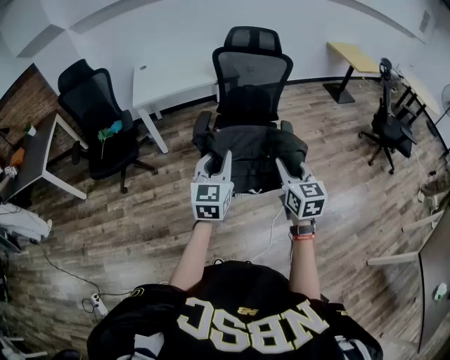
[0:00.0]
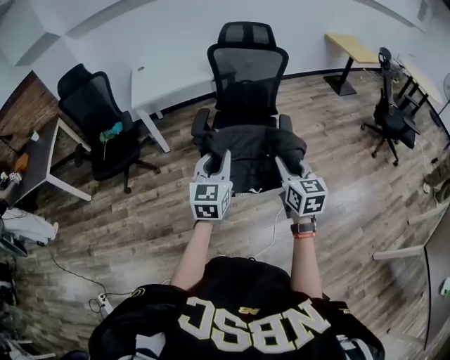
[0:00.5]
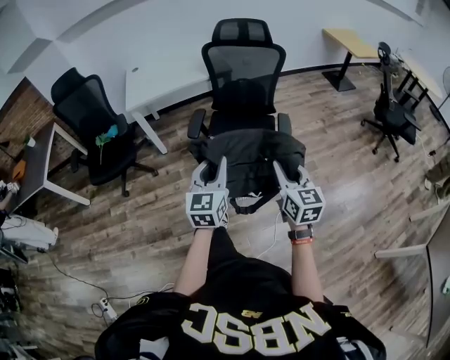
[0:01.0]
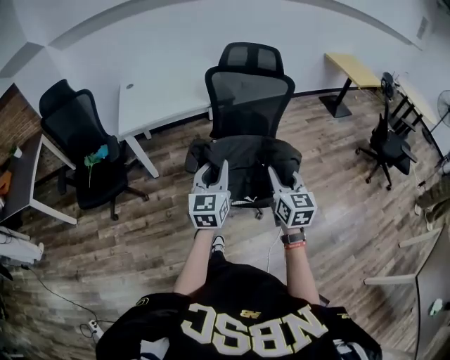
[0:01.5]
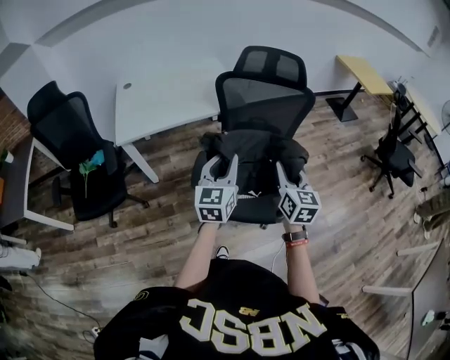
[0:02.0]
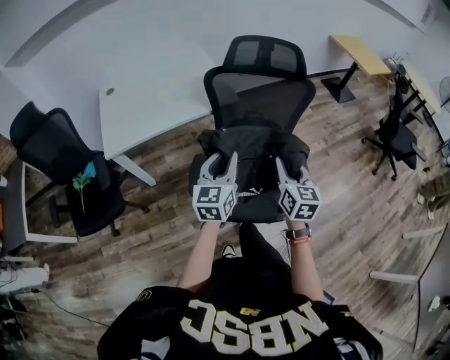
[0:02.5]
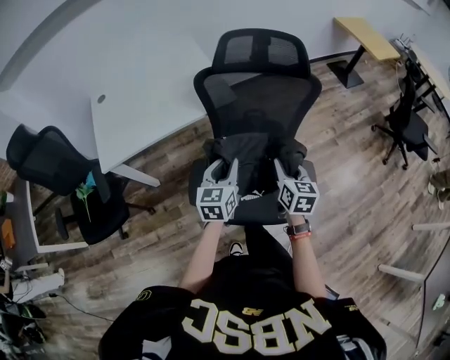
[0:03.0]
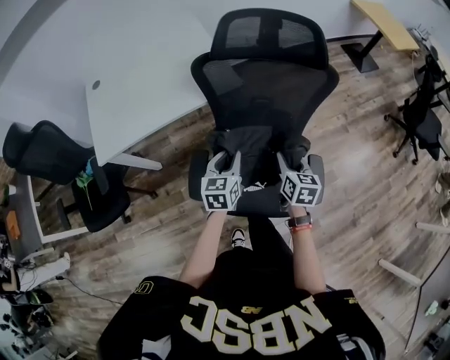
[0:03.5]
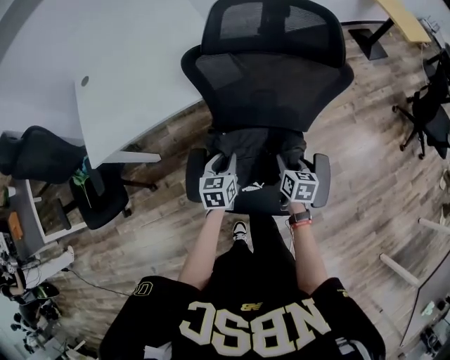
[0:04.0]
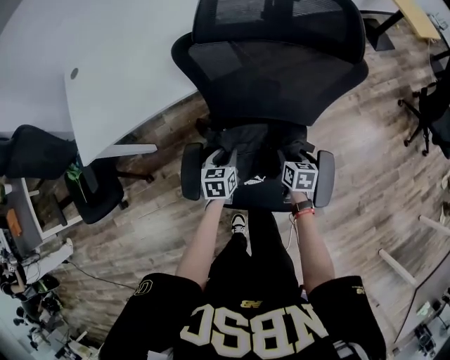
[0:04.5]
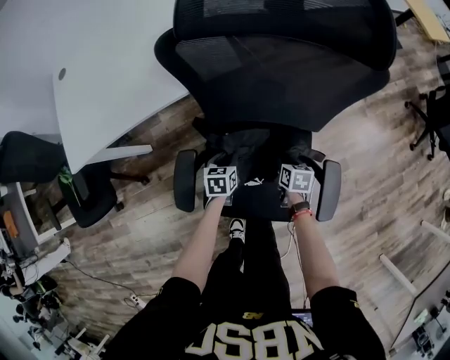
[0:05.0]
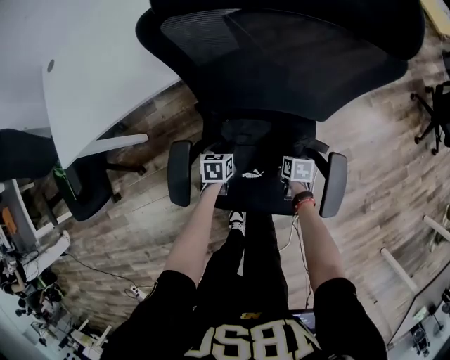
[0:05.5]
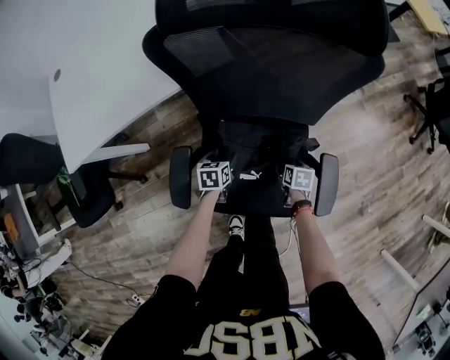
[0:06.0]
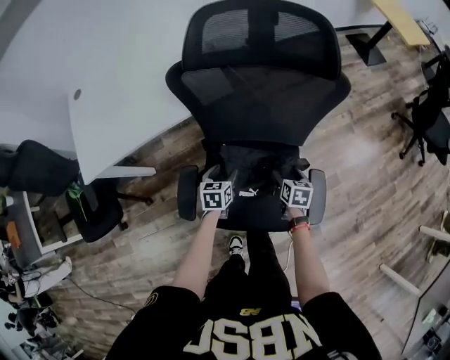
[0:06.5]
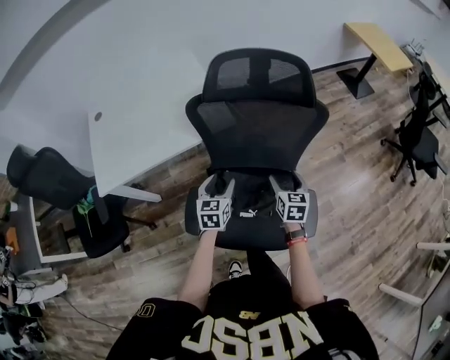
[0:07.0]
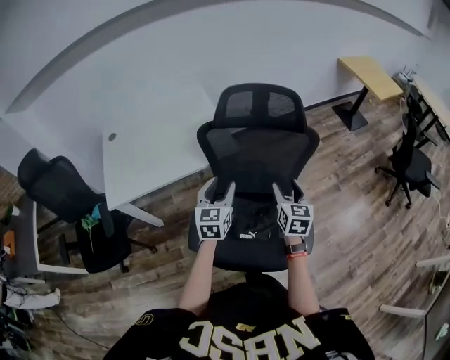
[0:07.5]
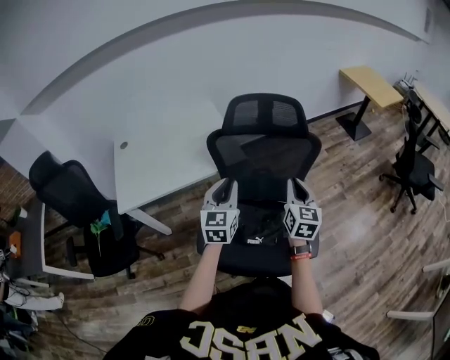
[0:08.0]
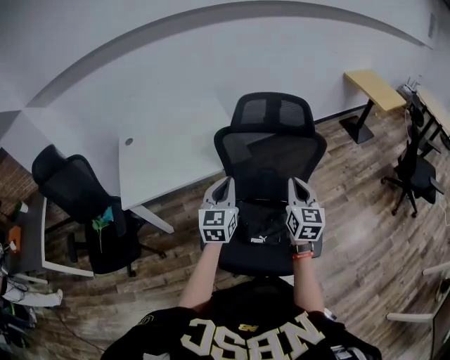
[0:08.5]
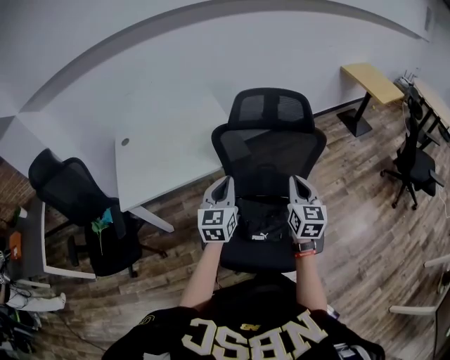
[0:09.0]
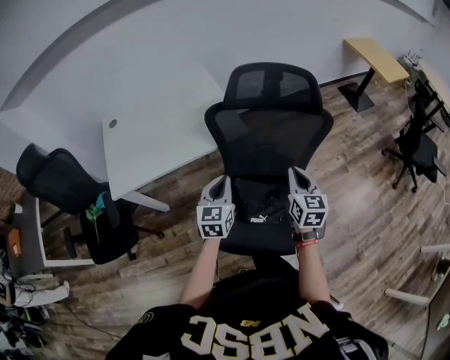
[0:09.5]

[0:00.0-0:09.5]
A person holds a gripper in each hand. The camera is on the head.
0:00.0 to 0:02.0: The grippers both shift forward by some 35 cm.
0:02.0 to 0:04.0: The two grippers go approximately 35 cm downward and forward. The right gripper tips its fingers downward by about 30 degrees; the left gripper angles its fingers downward, by roughly 30 degrees.
0:04.0 to 0:05.5: Both grippers move downward, some 25 cm. The left gripper rotates some 20 degrees, while the right gripper turns by some 20 degrees, and opens up.
0:05.5 to 0:07.5: The grippers both shift upward by about 50 cm. The left gripper angles its fingers upward, by roughly 40 degrees. The right gripper tips its fingers upward by about 40 degrees.
0:07.5 to 0:09.5: The right gripper goes upward and returns, some 10 cm each way, and closes. The left gripper goes upward and returns, roughly 10 cm each way, and closes.

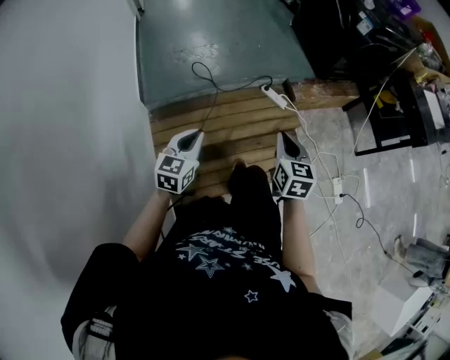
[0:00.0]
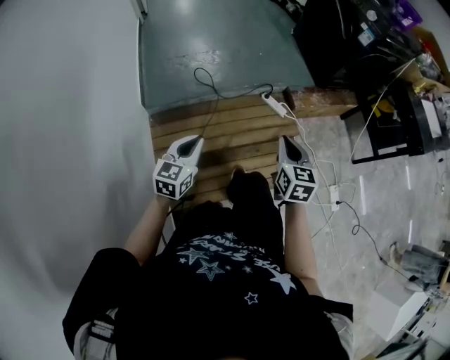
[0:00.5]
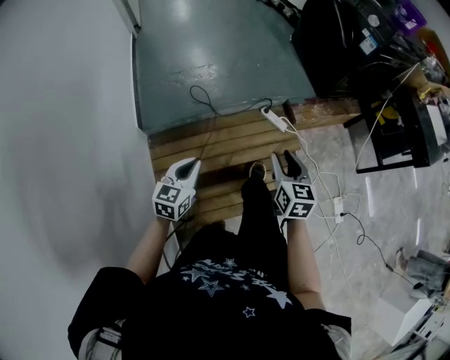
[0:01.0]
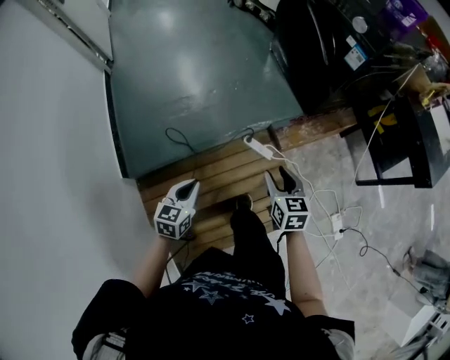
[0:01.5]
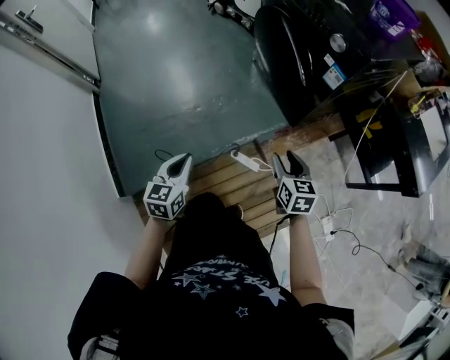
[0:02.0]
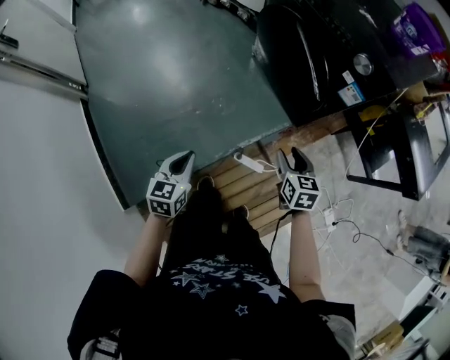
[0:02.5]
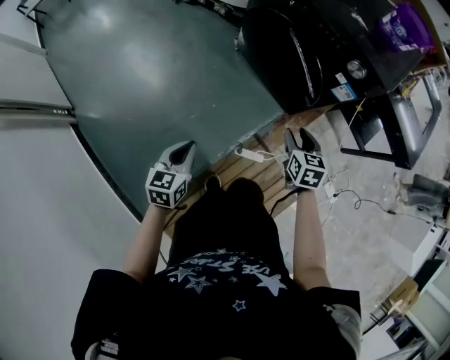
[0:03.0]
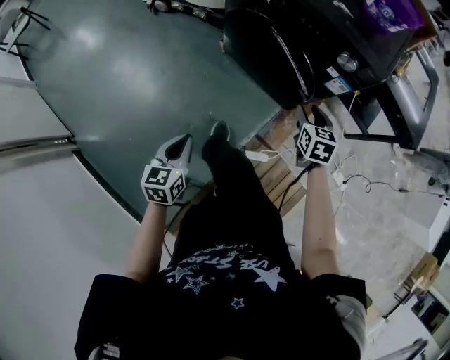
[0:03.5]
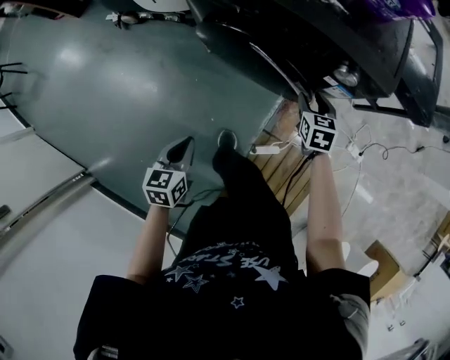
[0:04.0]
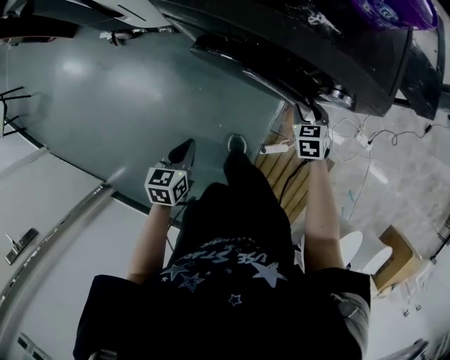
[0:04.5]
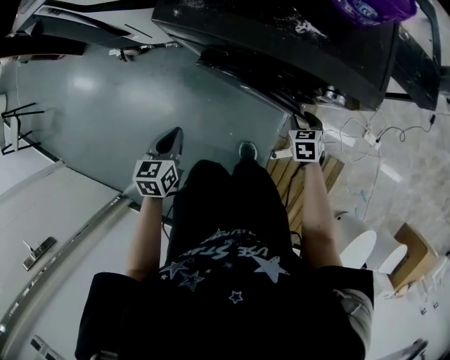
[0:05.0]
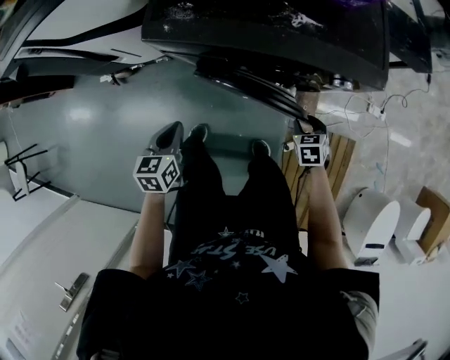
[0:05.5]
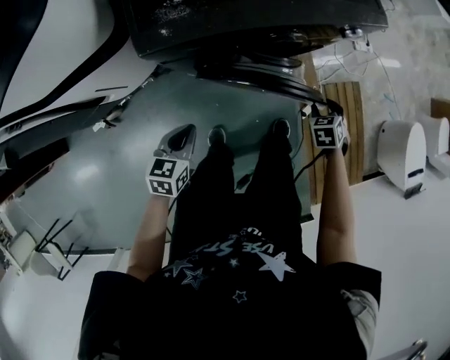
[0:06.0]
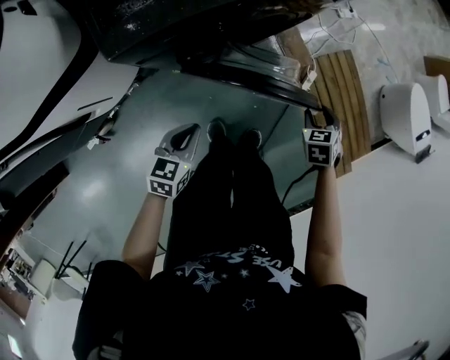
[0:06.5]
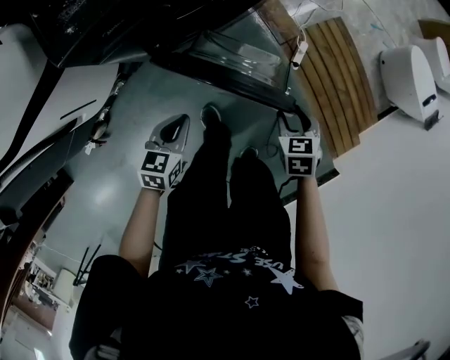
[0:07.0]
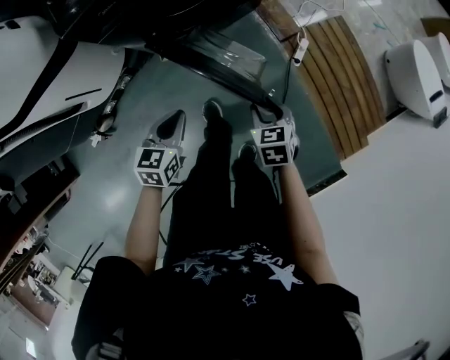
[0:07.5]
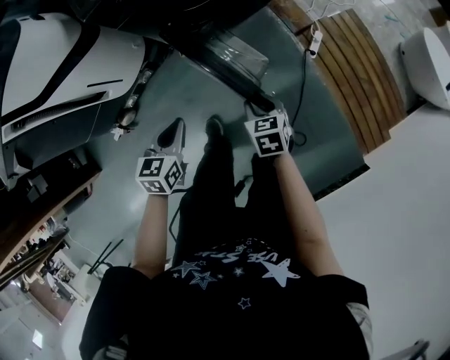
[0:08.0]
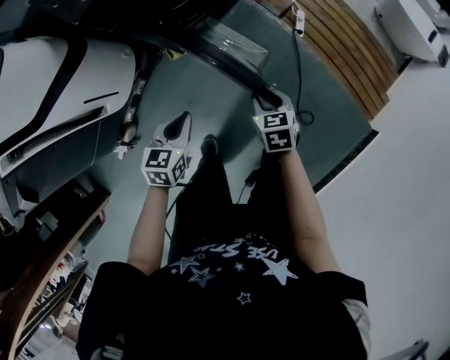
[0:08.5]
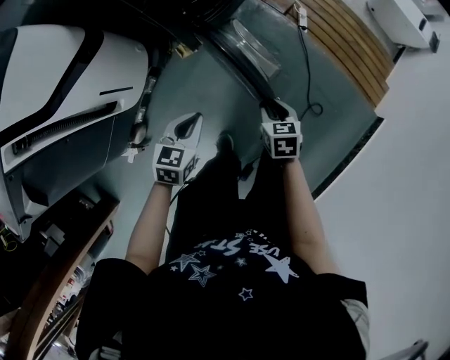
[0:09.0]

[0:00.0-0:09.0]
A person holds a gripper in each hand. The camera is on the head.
0:00.0 to 0:02.0: The two grippers travel together, forward, about 50 cm. The right gripper opens.
0:02.0 to 0:04.5: The left gripper ends up roughly 50 cm from where it was, and rotates some 40 degrees; the right gripper moves some 5 cm upward and comes back, and rotates approximately 40 degrees.
0:04.5 to 0:07.0: The left gripper shifts by approximately 20 cm, and turns by approximately 70 degrees, while the right gripper moves roughly 35 cm, and rotates around the line of its fingers by roughly 50 degrees, clockwise from behind.
0:07.0 to 0:09.0: The left gripper ends up approximately 25 cm from where it was, and swivels approximately 20 degrees. Meanwhile the right gripper shifts by about 30 cm, and turns by some 20 degrees.

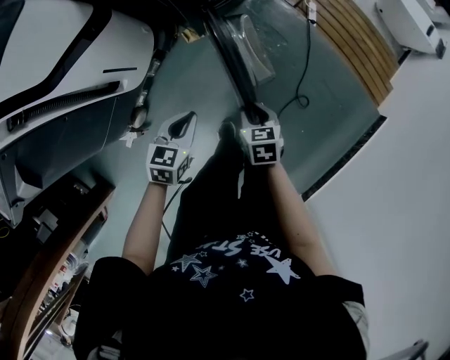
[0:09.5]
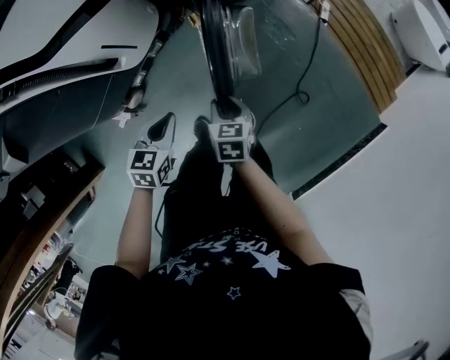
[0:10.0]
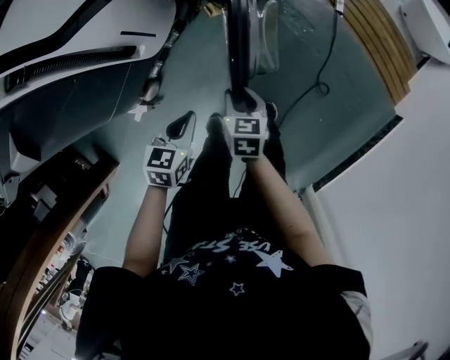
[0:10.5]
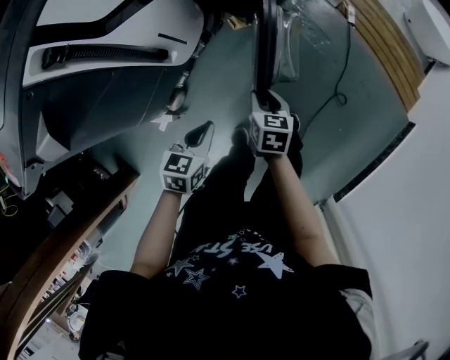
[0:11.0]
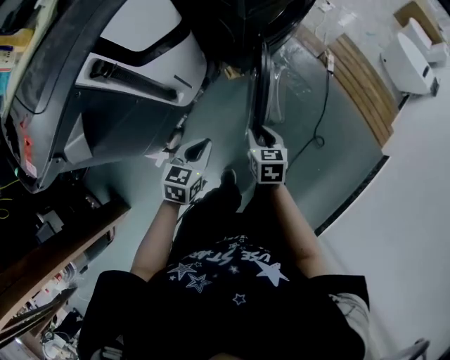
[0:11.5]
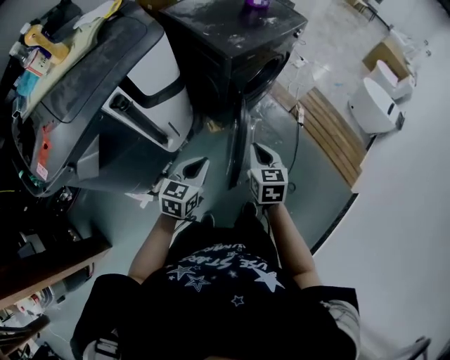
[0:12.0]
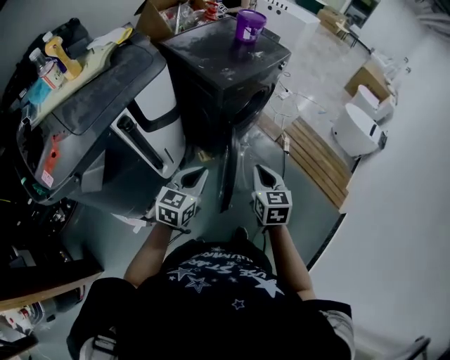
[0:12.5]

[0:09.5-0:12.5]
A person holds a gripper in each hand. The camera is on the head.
0:09.5 to 0:11.0: The left gripper shifts approximately 20 cm to the left and backward, while the right gripper heads to the left, covering roughly 15 cm.
0:11.0 to 0:12.5: The right gripper travels upward by approximately 30 cm, swivels some 30 degrees, and closes up, while the left gripper is displaced upward and forward by some 25 cm, and turns by roughly 30 degrees.

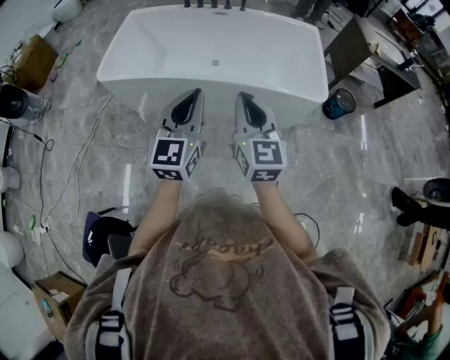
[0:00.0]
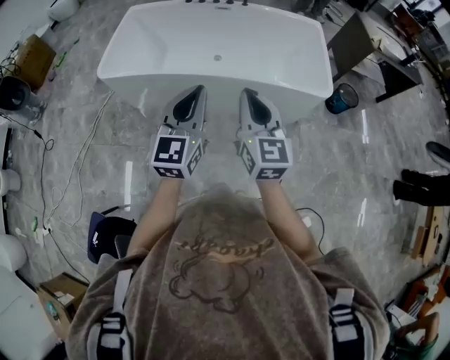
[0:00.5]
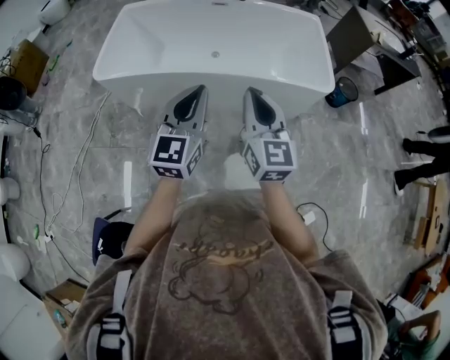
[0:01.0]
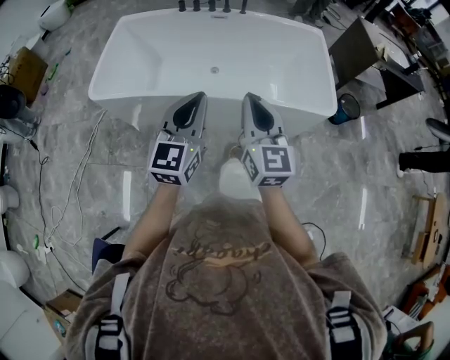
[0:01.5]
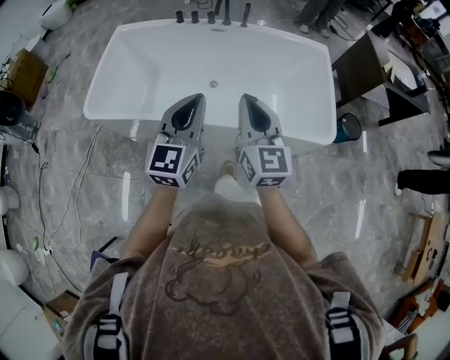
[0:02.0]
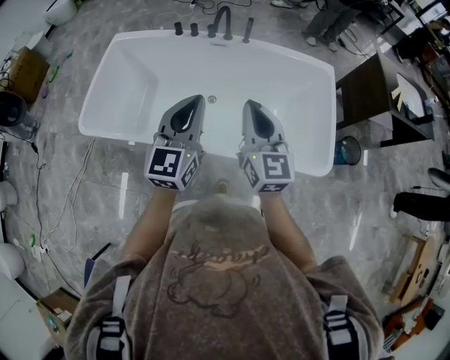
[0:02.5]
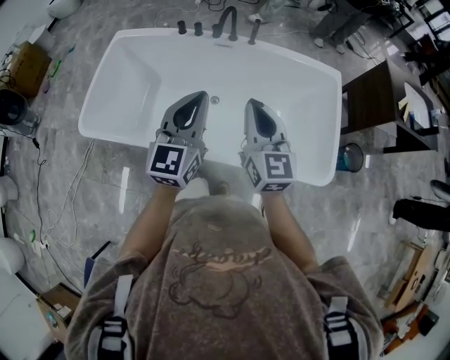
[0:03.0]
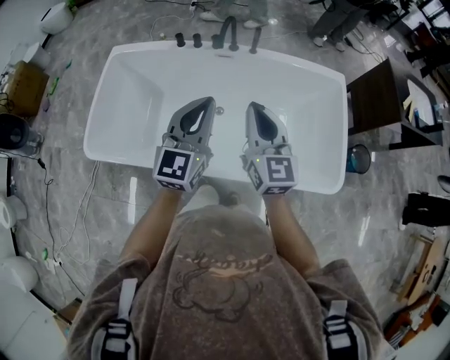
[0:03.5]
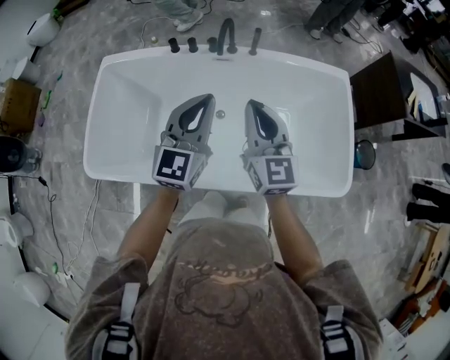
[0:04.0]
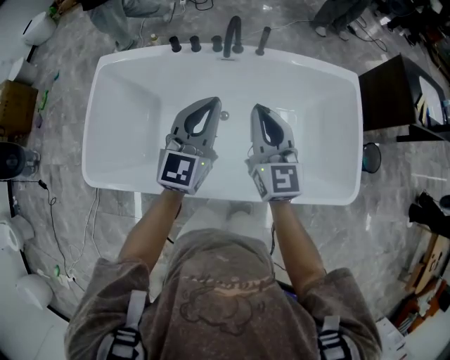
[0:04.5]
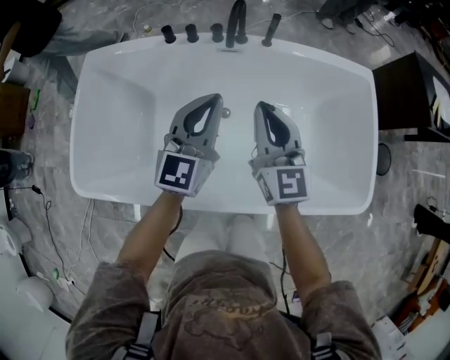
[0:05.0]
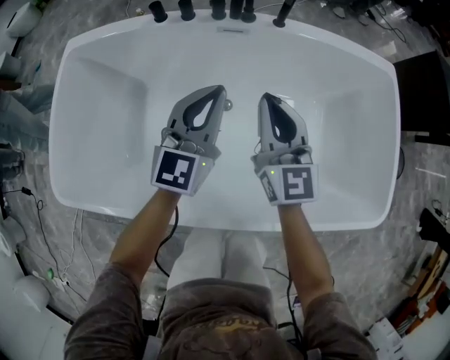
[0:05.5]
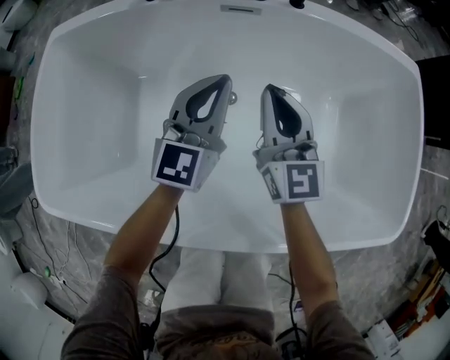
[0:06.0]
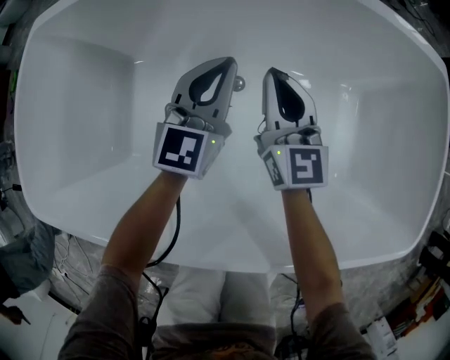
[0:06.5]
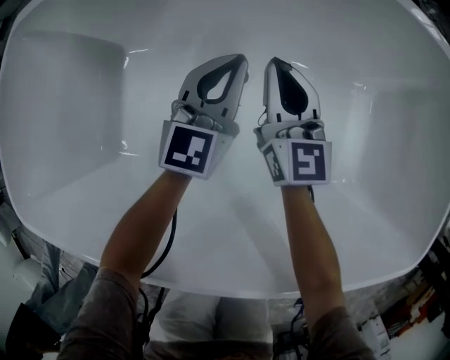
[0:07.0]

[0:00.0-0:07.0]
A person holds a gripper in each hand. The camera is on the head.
0:00.0 to 0:02.0: Both grippers move forward, approximately 30 cm.
0:02.0 to 0:03.5: Both grippers move forward, roughly 25 cm.
0:03.5 to 0:05.0: The two grippers go about 20 cm forward and downward.
0:05.0 to 0:07.0: Both grippers move downward, some 40 cm.
